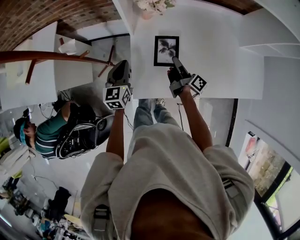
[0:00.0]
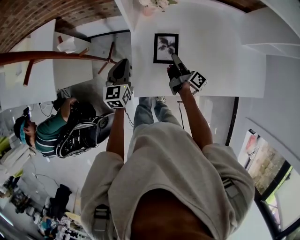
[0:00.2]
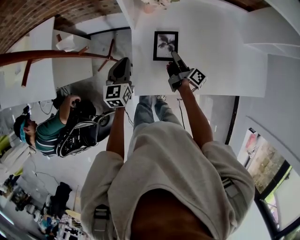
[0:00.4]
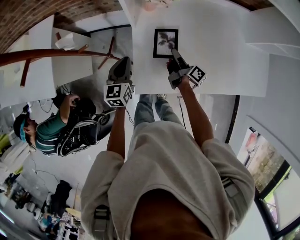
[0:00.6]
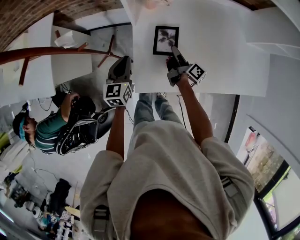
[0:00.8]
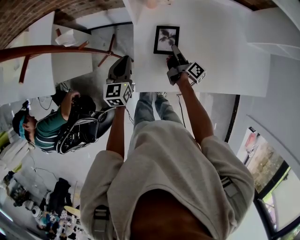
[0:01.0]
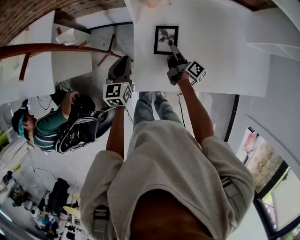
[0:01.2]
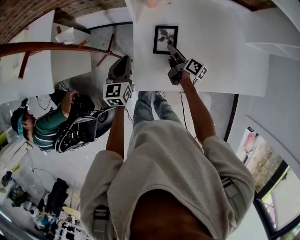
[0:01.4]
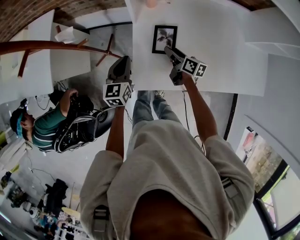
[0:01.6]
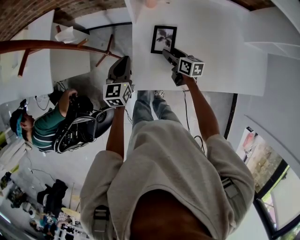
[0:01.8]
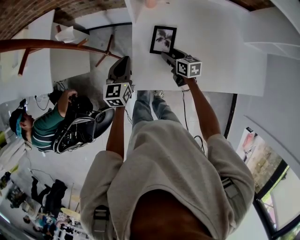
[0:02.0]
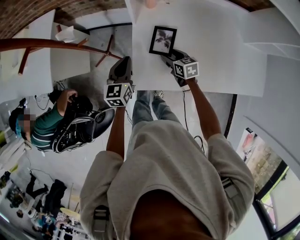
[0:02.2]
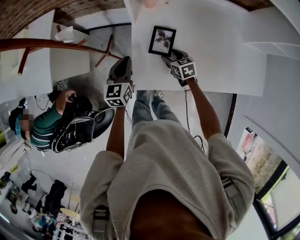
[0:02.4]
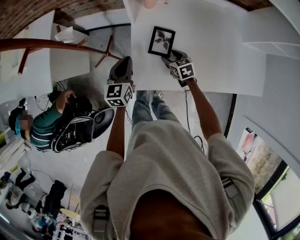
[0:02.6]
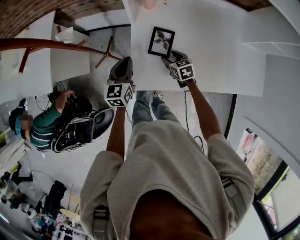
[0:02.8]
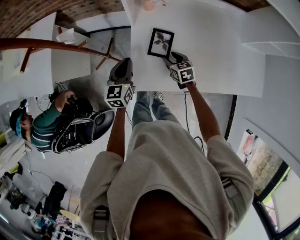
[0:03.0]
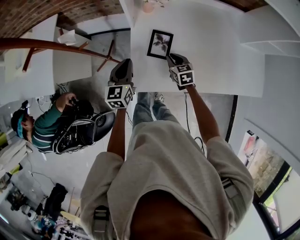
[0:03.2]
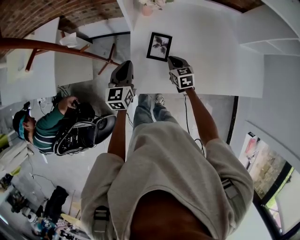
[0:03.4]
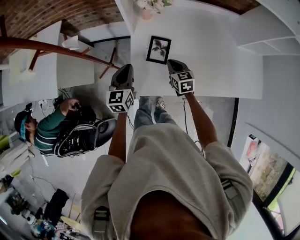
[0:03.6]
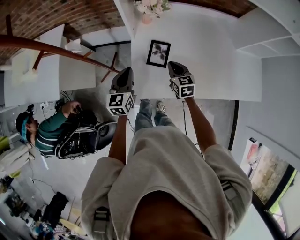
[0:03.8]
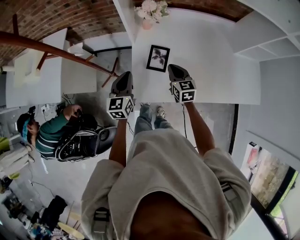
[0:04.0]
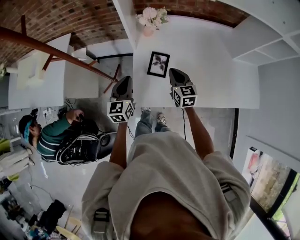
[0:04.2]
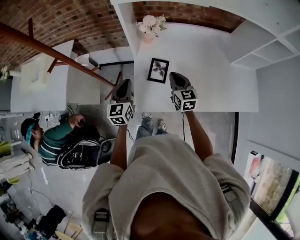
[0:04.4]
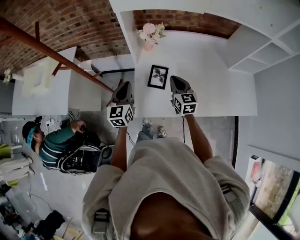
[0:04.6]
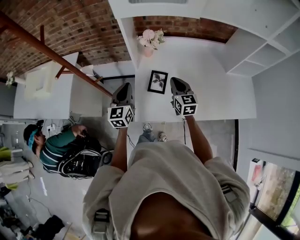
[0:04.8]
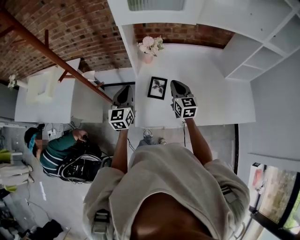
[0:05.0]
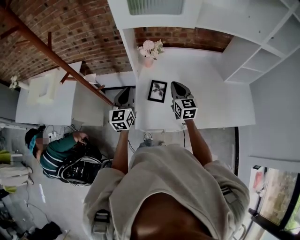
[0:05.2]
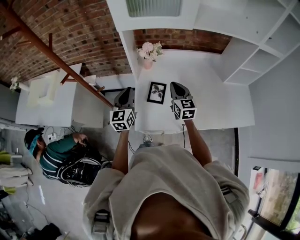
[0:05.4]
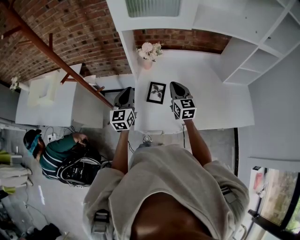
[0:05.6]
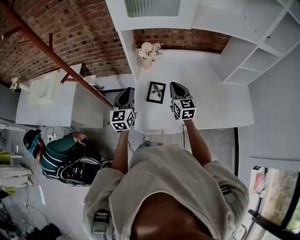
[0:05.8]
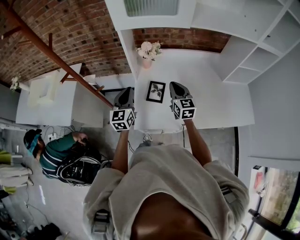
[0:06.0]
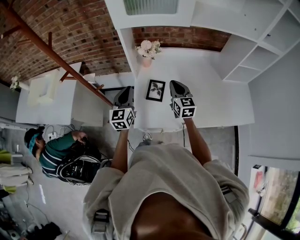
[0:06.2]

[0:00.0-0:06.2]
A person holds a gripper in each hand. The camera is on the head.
0:00.0 to 0:01.6: The right gripper moves downward, approximately 5 cm, turns by approximately 30 degrees, and opens up.
0:01.6 to 0:03.2: The right gripper twists some 40 degrees counterclockwise, seen from behind, and closes up.
0:03.2 to 0:04.6: The right gripper moves upward, approximately 20 cm, and rotates roughly 30 degrees. Meanwhile the left gripper travels upward by roughly 10 cm.
0:04.6 to 0:06.2: Both grippers travel together upward, about 5 cm.
